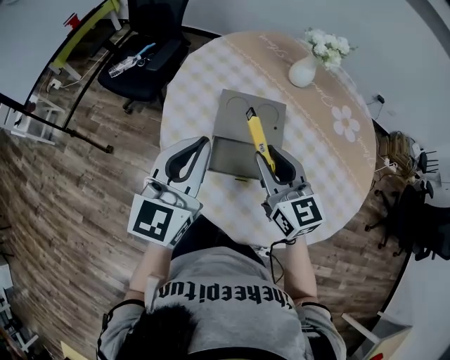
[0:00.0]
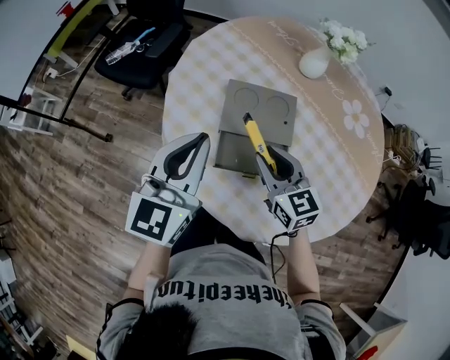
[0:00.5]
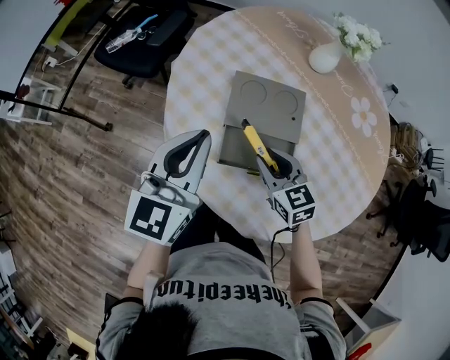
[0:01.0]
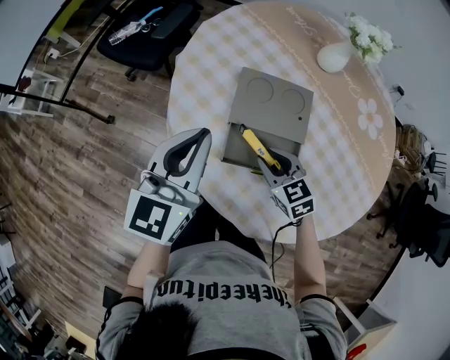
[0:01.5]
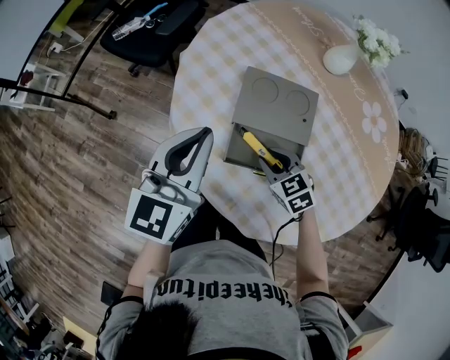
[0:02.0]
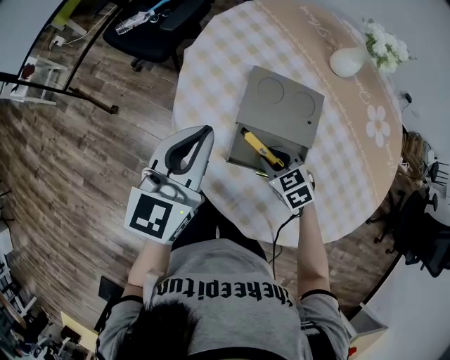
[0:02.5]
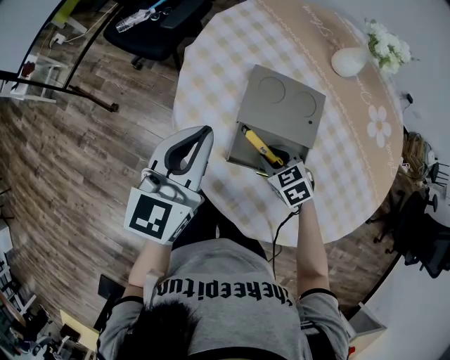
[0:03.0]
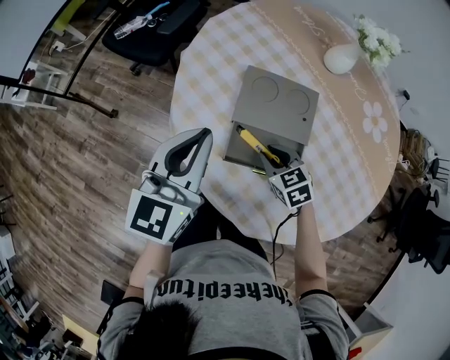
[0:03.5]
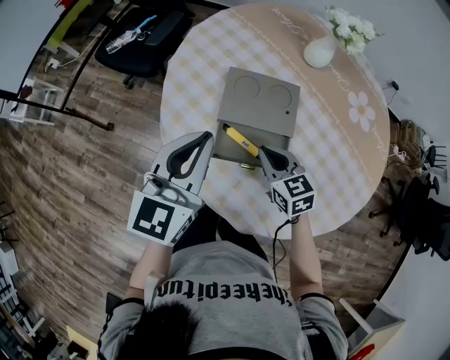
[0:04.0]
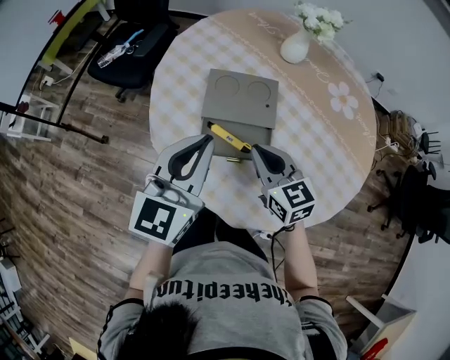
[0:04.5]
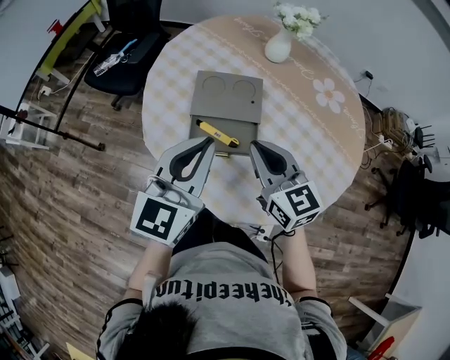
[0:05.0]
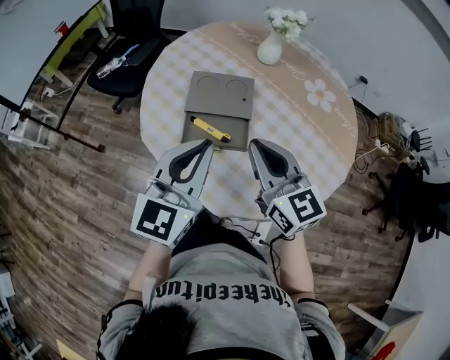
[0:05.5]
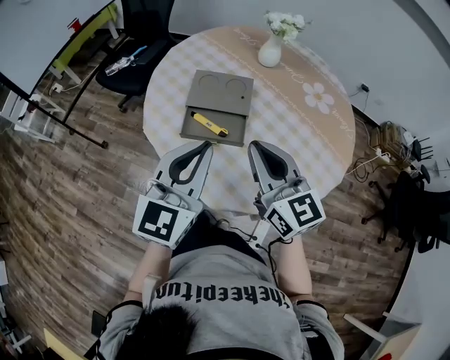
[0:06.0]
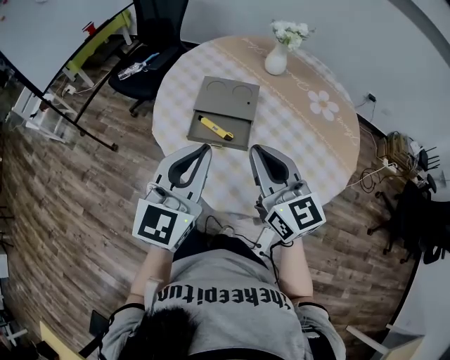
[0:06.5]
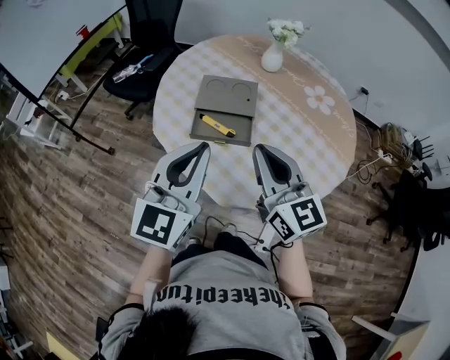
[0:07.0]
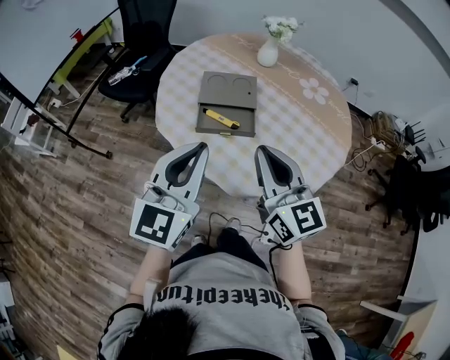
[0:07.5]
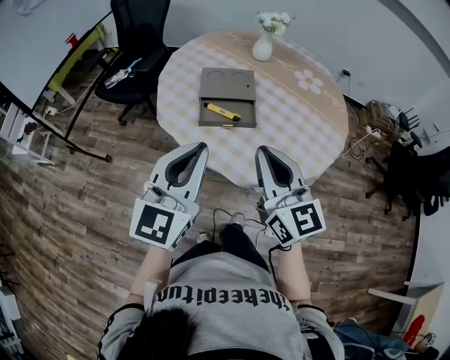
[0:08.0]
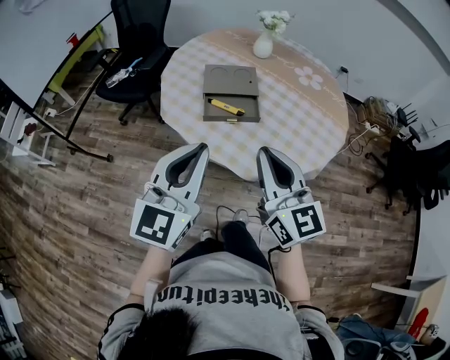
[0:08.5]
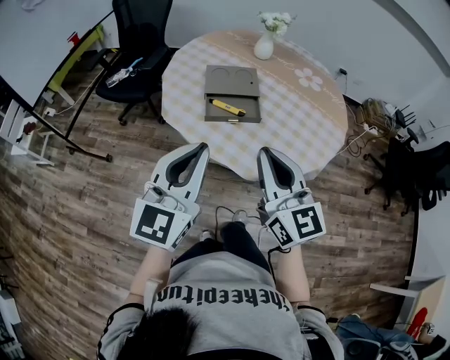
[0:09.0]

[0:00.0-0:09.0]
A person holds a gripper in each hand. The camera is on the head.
0:00.0 to 0:02.0: The right gripper shifts approximately 20 cm downward, and tilts its fingers some 40 degrees downward. The left gripper goes about 5 cm downward.
0:02.0 to 0:04.5: The left gripper travels to the right and backward by approximately 10 cm. The right gripper goes some 15 cm upward, swivels some 30 degrees, and closes.
0:04.5 to 0:07.0: The left gripper moves backward, about 15 cm; the right gripper travels backward and upward by about 20 cm, and rotates approximately 20 degrees.
0:07.0 to 0:09.0: The grippers both shift backward and to the left by some 15 cm.

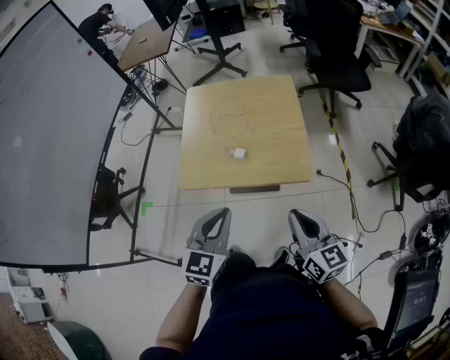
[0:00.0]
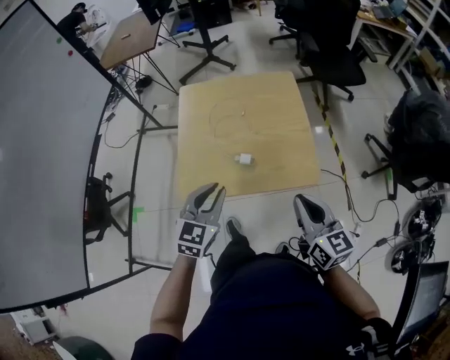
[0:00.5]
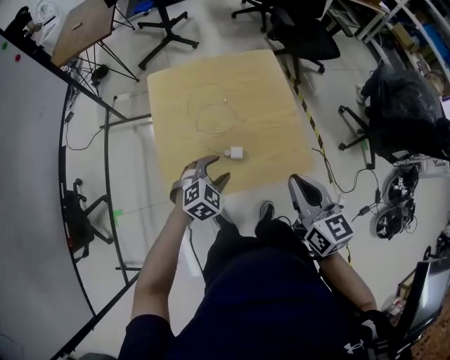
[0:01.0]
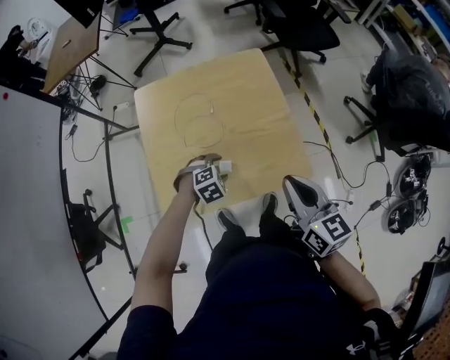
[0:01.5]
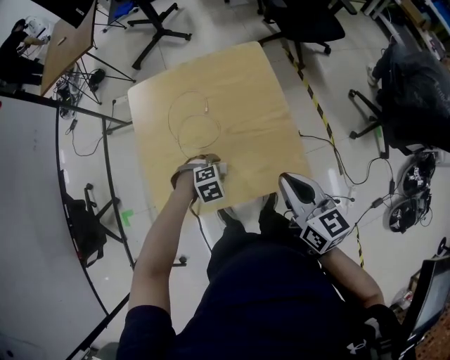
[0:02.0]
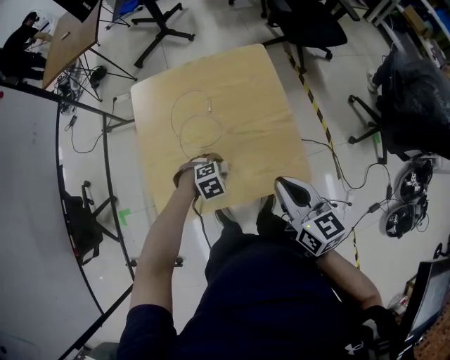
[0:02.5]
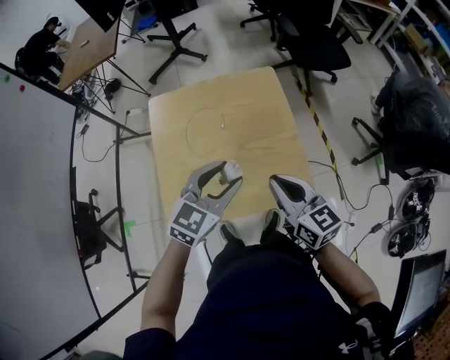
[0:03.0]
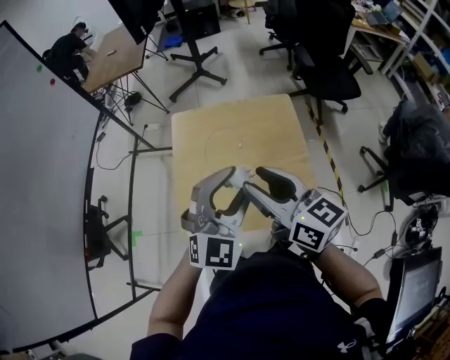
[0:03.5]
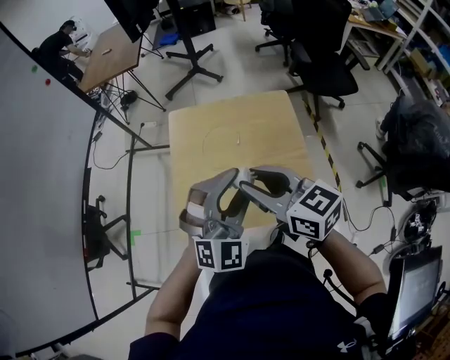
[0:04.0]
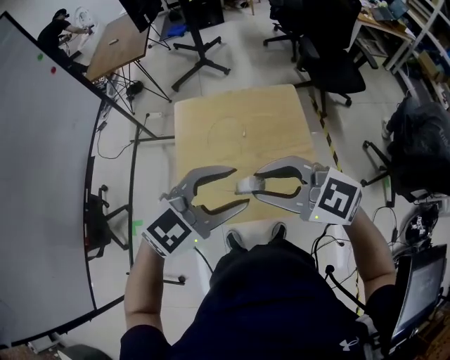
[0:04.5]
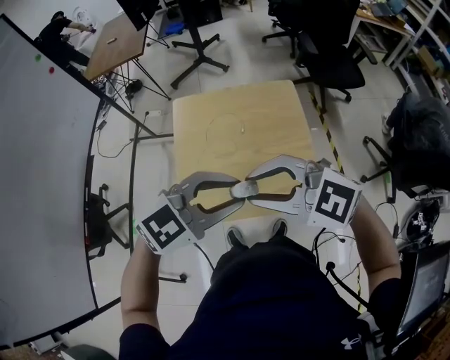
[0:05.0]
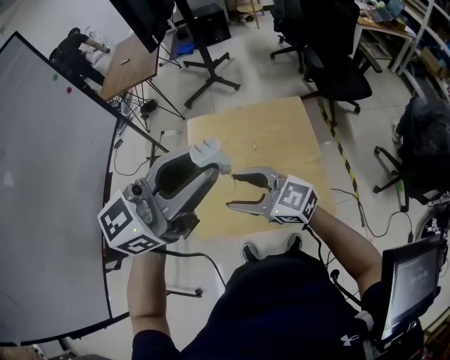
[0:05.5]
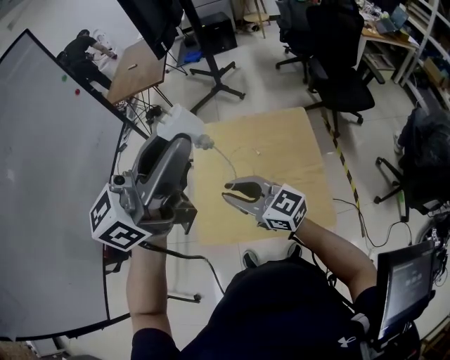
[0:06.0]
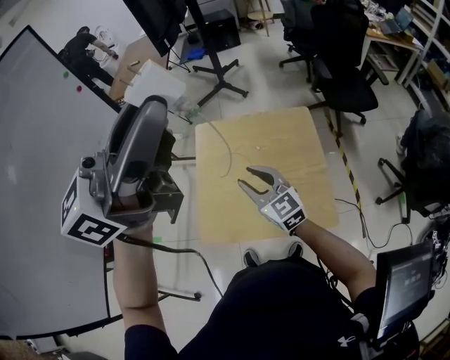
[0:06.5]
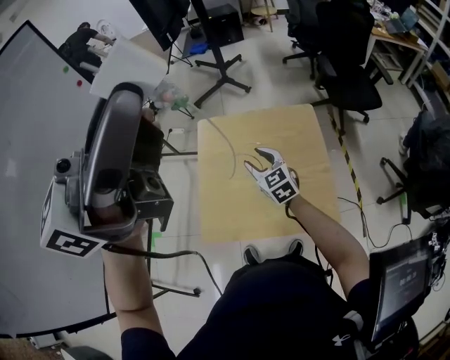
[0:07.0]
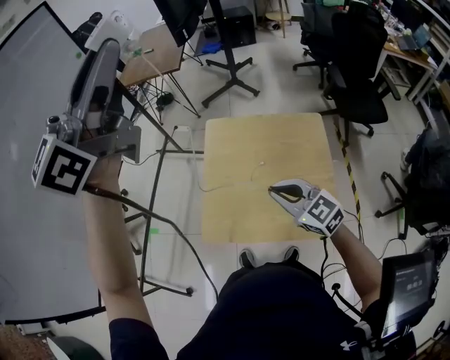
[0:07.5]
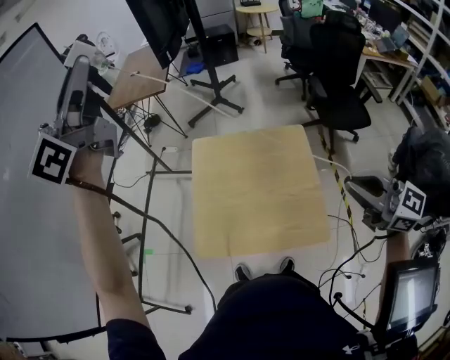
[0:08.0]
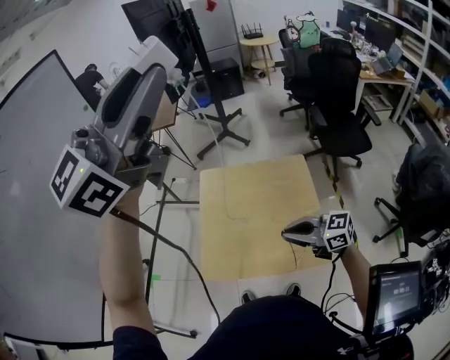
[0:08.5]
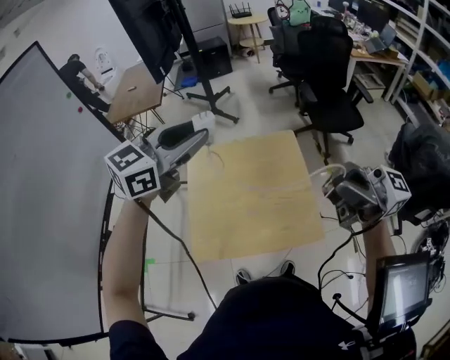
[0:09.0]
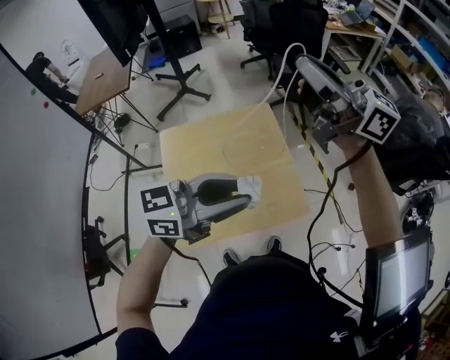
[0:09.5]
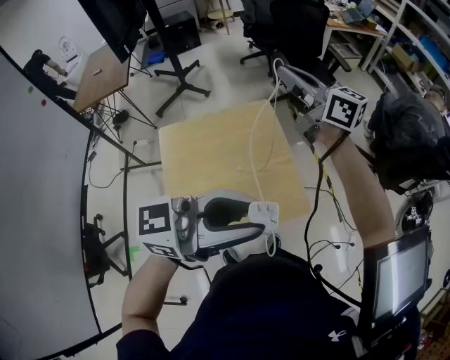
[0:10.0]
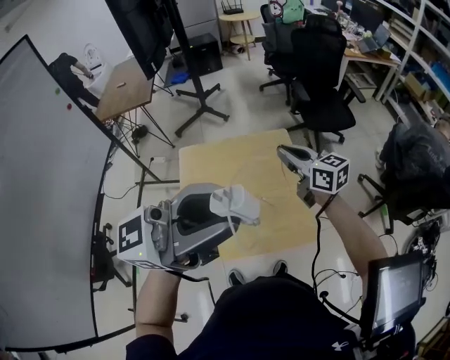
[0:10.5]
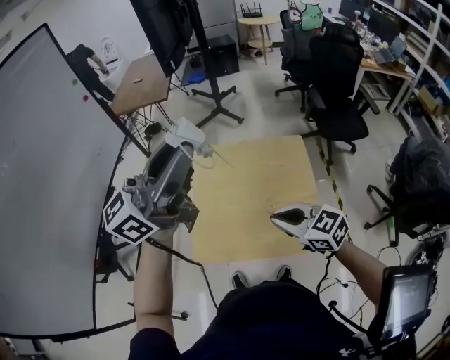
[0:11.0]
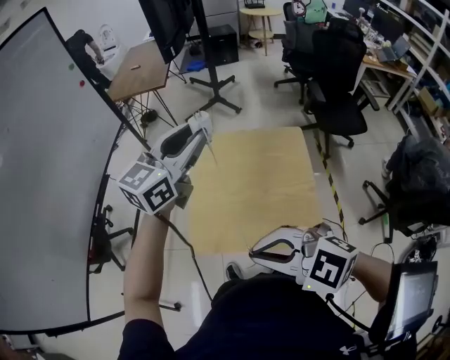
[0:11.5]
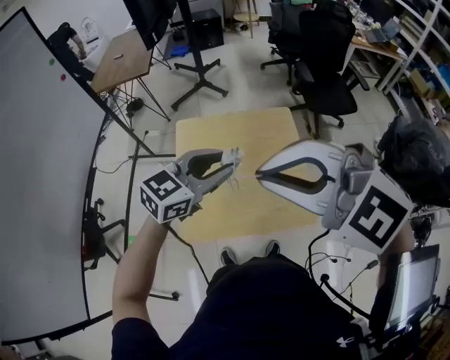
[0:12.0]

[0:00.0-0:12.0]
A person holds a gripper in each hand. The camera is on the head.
0:00.0 to 0:02.0: The right gripper ends up approximately 20 cm from where it was; the left gripper goes some 30 cm downward, tilts its fingers roughly 60 degrees downward, and opens.
0:02.0 to 0:04.0: The right gripper shifts by about 20 cm, changes its angle by about 30 degrees, and opens. The left gripper is displaced upward by approximately 35 cm, and points its fingers roughly 70 degrees further upward.
0:04.0 to 0:06.0: The left gripper goes about 25 cm upward, and rotates around the line of its fingers by some 60 degrees, counterclockwise from behind. The right gripper ends up some 10 cm from where it was, changes its angle by approximately 20 degrees, and opens, then closes again.
0:06.0 to 0:08.0: The left gripper ends up about 25 cm from where it was, and changes its angle by about 30 degrees. The right gripper moves roughly 30 cm, and opens, then closes once more.
0:08.0 to 0:10.0: The left gripper goes up and down, about 35 cm each way, reversing 2 times, and changes its angle by some 80 degrees. The right gripper goes up and down, about 30 cm each way, reversing 2 times, and swivels some 30 degrees.
0:10.0 to 0:12.0: The right gripper moves roughly 20 cm downward and comes back, and tilts its fingers roughly 30 degrees downward, while the left gripper changes place by roughly 20 cm, and swivels some 50 degrees.

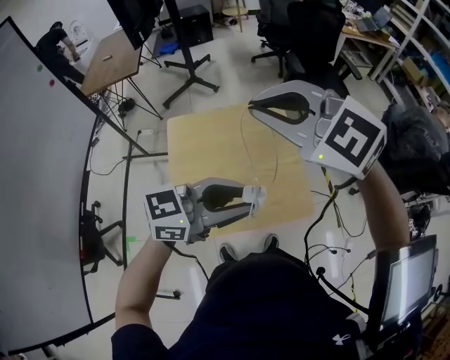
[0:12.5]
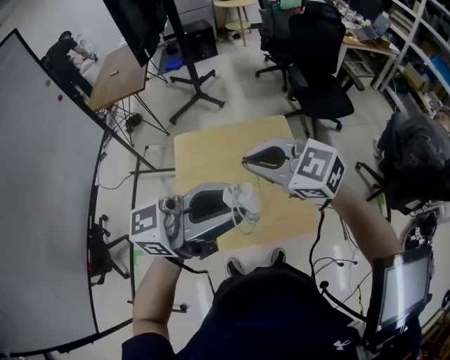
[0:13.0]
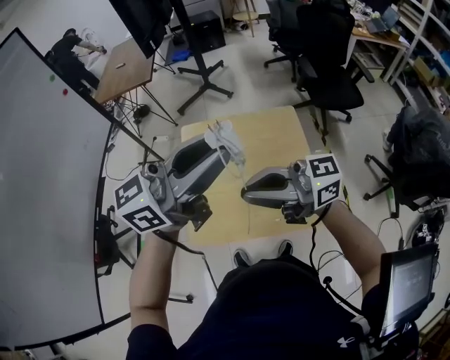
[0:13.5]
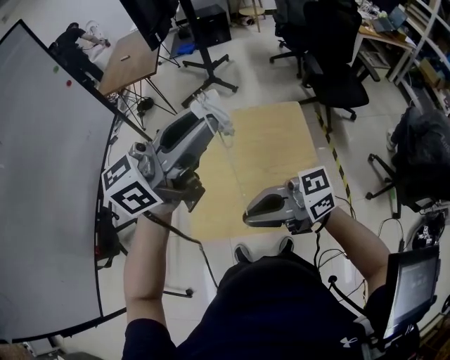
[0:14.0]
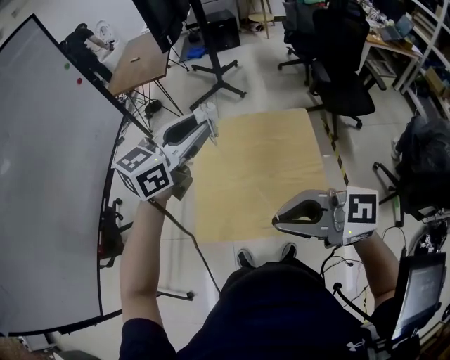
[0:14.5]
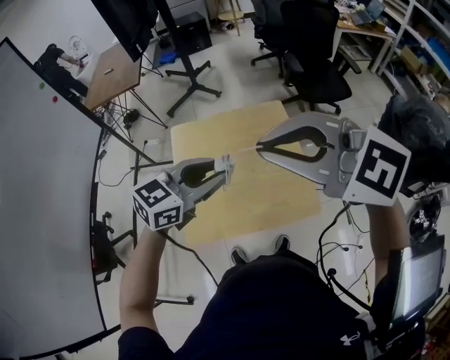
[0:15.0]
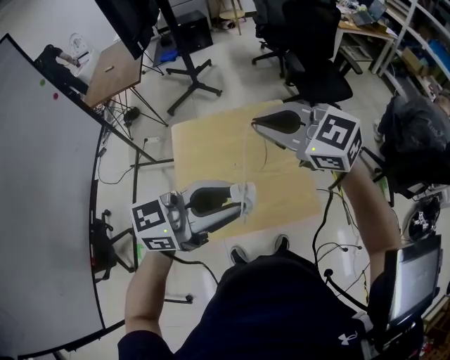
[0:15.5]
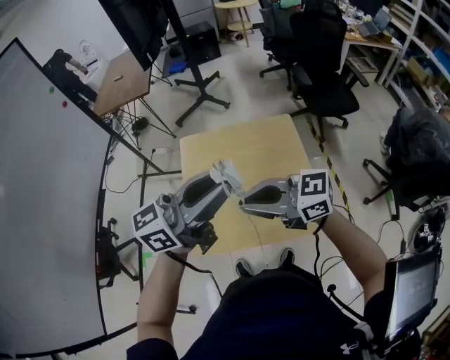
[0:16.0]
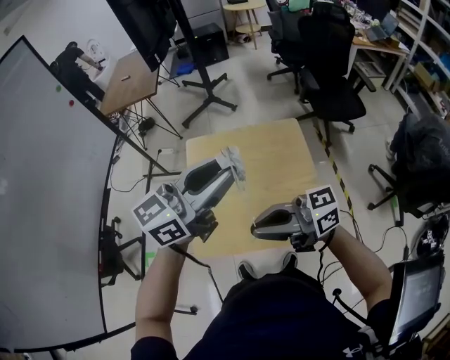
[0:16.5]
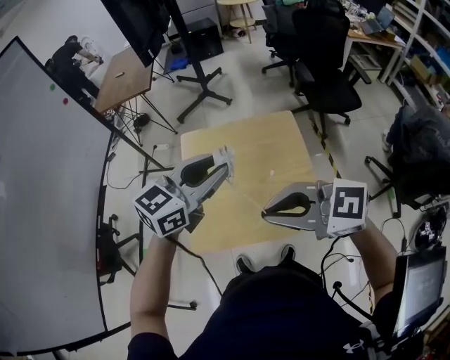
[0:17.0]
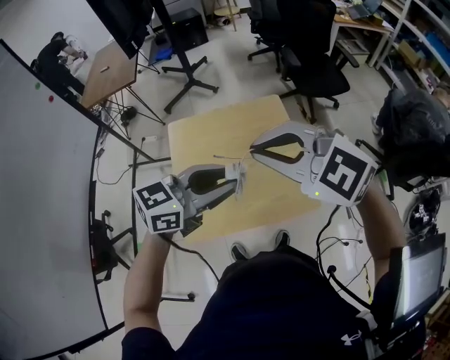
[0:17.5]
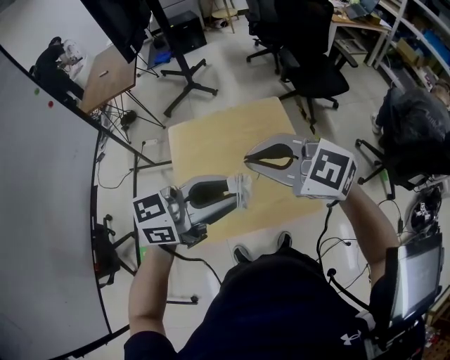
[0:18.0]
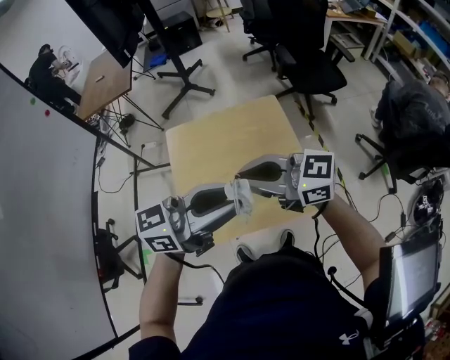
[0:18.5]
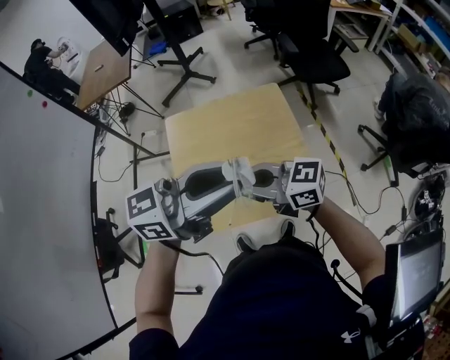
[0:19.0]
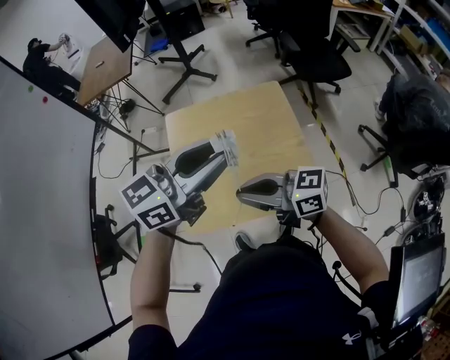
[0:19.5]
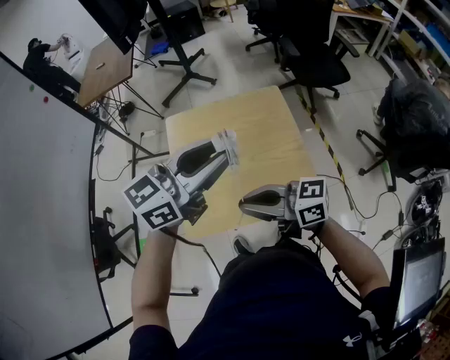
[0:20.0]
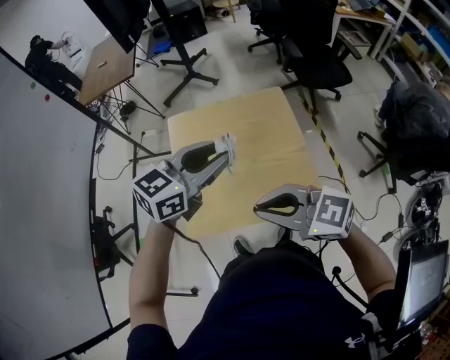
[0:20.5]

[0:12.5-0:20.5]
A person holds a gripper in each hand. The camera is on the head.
0:12.5 to 0:14.5: The left gripper changes place by some 20 cm, and swivels approximately 40 degrees; the right gripper moves approximately 20 cm, and rotates about 50 degrees.
0:14.5 to 0:16.5: The left gripper moves about 10 cm downward and comes back. Meanwhile the right gripper goes some 5 cm downward, and rotates some 30 degrees.
0:16.5 to 0:18.5: The right gripper goes upward and returns, some 10 cm each way, and turns by approximately 30 degrees. The left gripper changes place by roughly 10 cm, and swivels about 30 degrees.
0:18.5 to 0:20.5: The left gripper changes place by about 10 cm, and swivels about 30 degrees. Meanwhile the right gripper ends up some 10 cm from where it was.
